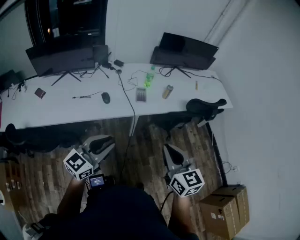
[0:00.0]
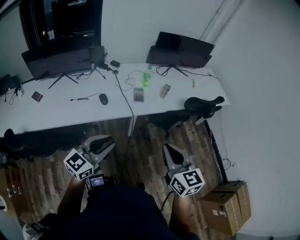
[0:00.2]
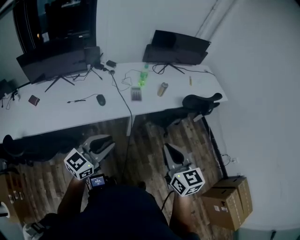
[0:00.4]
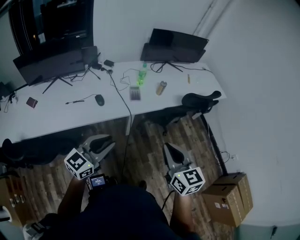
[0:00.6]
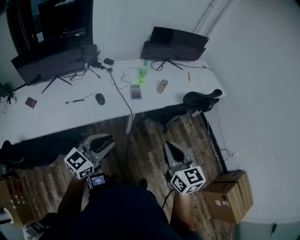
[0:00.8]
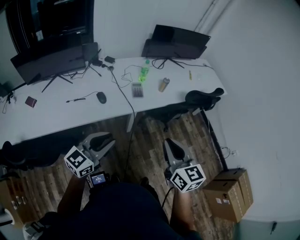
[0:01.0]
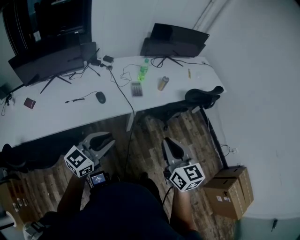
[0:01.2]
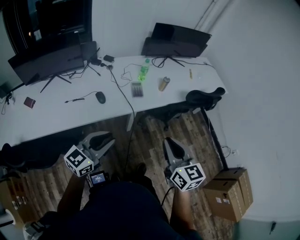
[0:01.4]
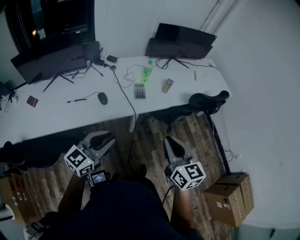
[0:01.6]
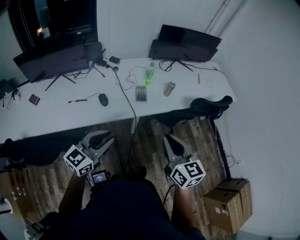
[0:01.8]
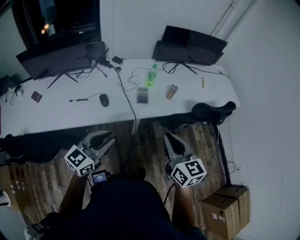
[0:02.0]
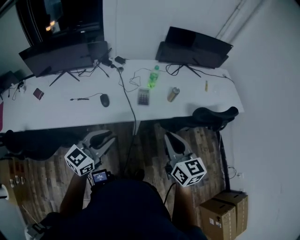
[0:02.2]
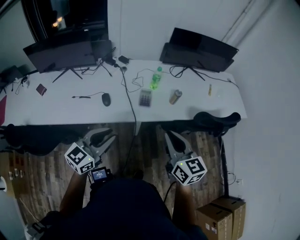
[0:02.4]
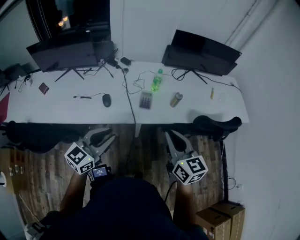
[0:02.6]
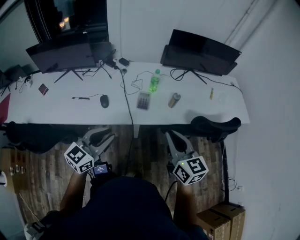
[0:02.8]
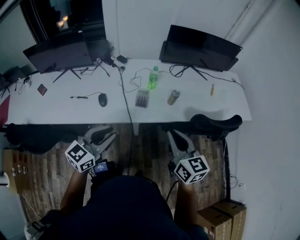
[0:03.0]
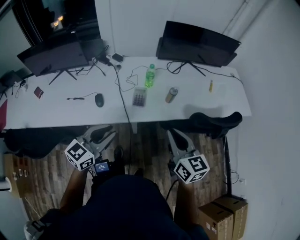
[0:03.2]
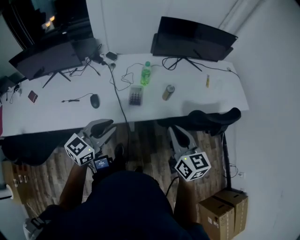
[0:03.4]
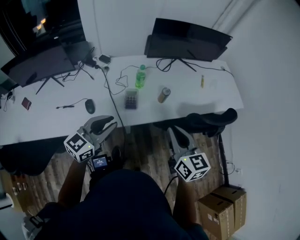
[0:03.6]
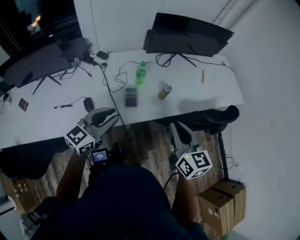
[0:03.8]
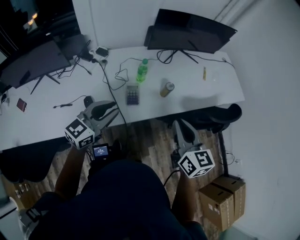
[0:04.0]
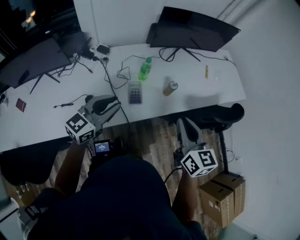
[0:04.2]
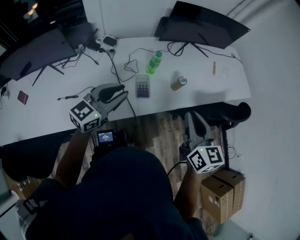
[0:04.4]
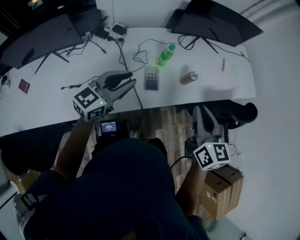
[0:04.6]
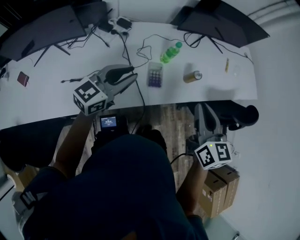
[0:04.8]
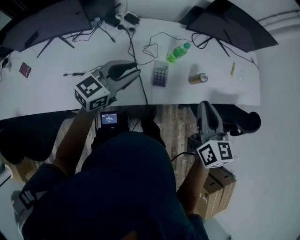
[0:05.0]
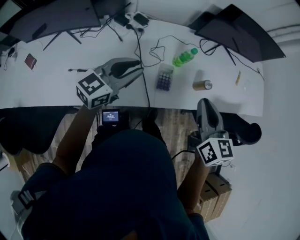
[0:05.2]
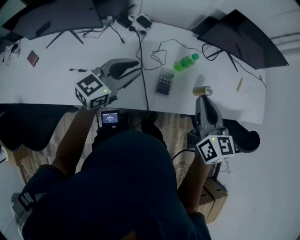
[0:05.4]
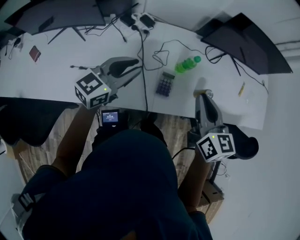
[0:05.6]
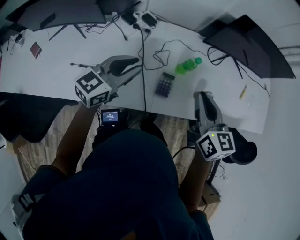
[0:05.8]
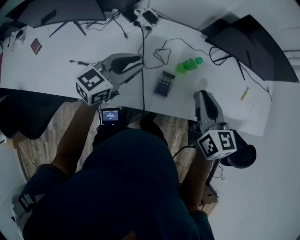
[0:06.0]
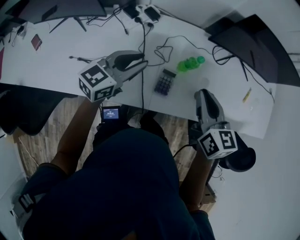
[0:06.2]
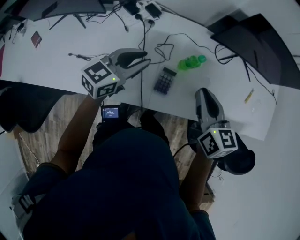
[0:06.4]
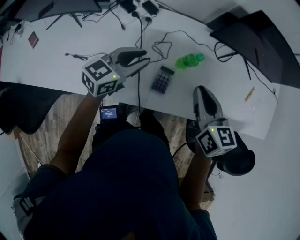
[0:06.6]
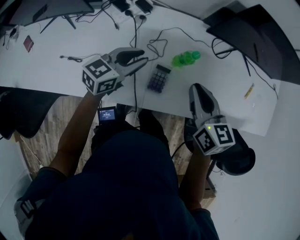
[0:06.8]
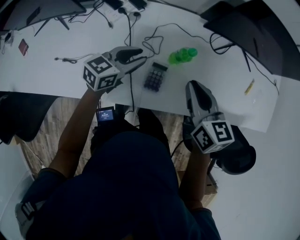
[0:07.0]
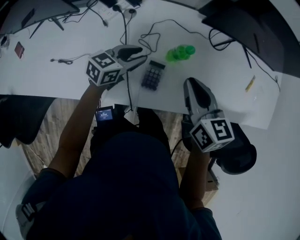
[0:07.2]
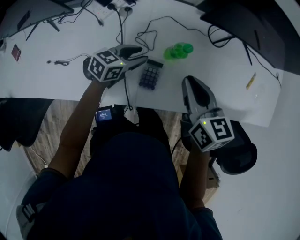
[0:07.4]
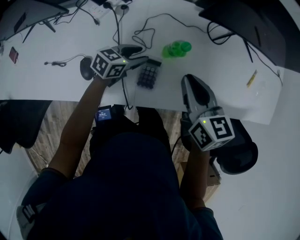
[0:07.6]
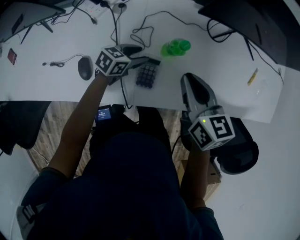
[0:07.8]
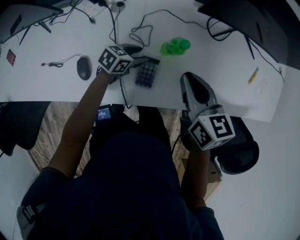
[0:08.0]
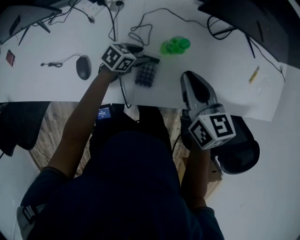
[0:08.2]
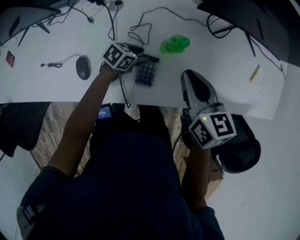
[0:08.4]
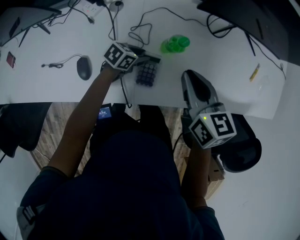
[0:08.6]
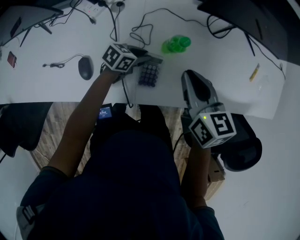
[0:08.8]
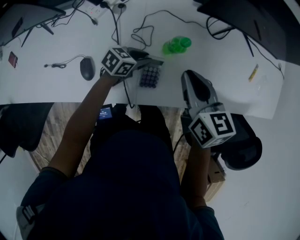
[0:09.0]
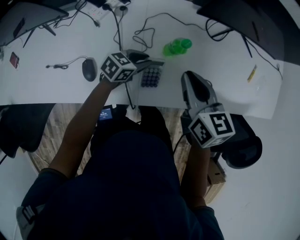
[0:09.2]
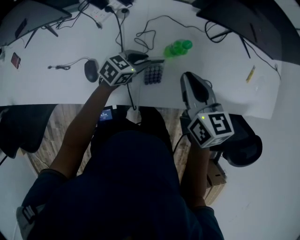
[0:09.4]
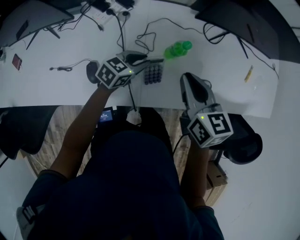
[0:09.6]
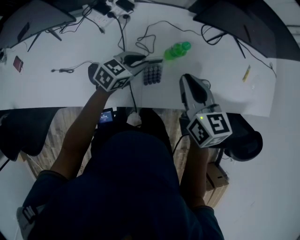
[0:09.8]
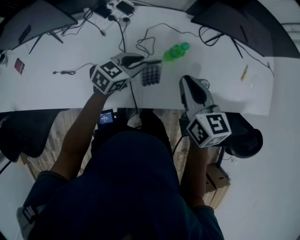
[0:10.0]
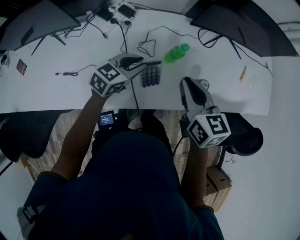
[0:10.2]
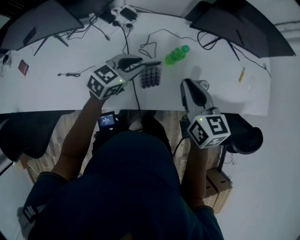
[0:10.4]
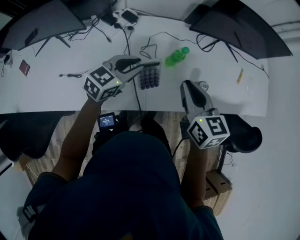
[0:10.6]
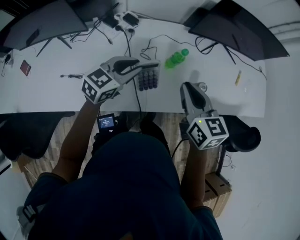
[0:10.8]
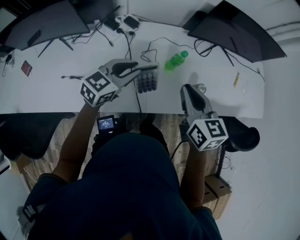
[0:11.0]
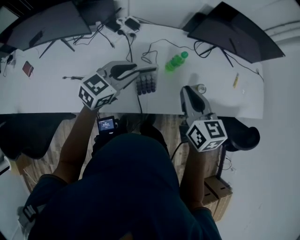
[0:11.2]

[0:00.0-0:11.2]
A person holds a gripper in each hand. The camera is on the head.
0:00.0 to 0:01.6: The grippers both shift forward by roughly 5 cm.
0:01.6 to 0:03.2: The grippers both shift forward and to the right by about 20 cm.
0:03.2 to 0:04.8: The left gripper travels forward and to the left by about 25 cm. The right gripper travels forward and to the left by some 15 cm.
0:04.8 to 0:06.4: The grippers both shift forward and downward by approximately 15 cm. The right gripper swivels about 20 degrees.
0:06.4 to 0:08.0: The left gripper heads downward, covering roughly 25 cm, rotates roughly 30 degrees, and opens its fingers. The right gripper shifts about 10 cm downward and forward.
0:08.0 to 0:09.6: The left gripper heads upward, covering roughly 10 cm, and closes. Meanwhile the right gripper shifts by approximately 5 cm.
0:09.6 to 0:11.2: The right gripper shifts roughly 10 cm backward and upward. The left gripper heads upward and backward, covering approximately 20 cm.

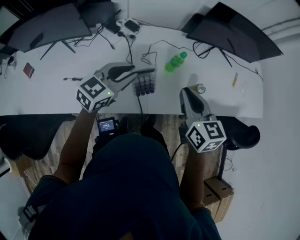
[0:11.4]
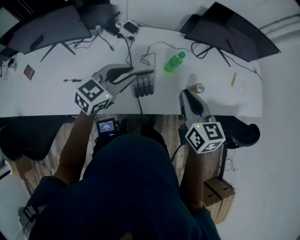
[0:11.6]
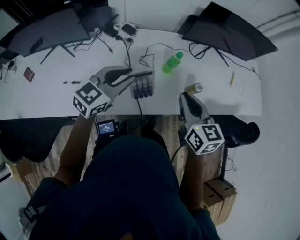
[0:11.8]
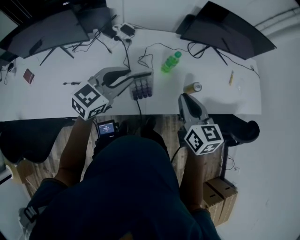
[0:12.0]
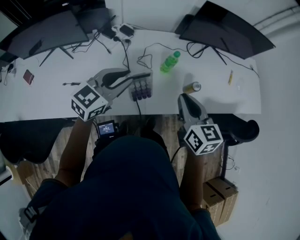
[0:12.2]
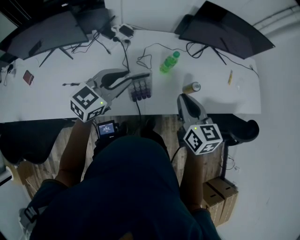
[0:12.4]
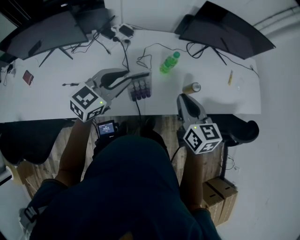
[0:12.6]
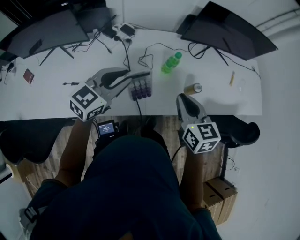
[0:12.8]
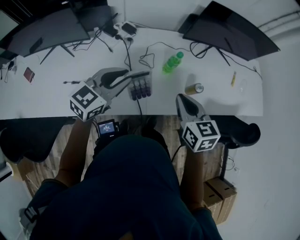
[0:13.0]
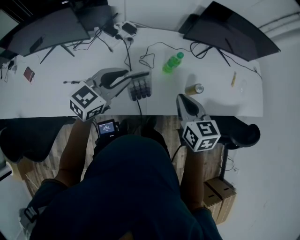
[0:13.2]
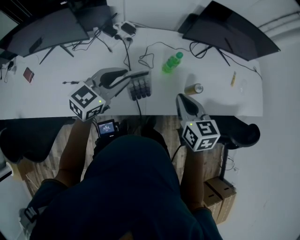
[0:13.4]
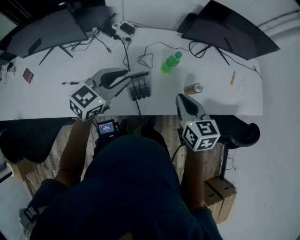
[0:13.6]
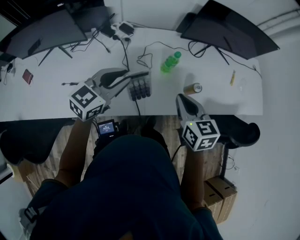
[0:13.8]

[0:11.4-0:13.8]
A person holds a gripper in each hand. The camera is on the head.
0:11.4 to 0:13.8: The grippers make only small movements.

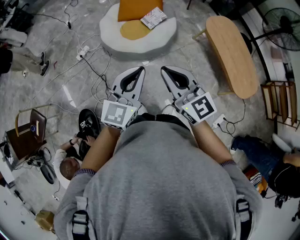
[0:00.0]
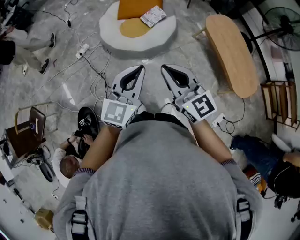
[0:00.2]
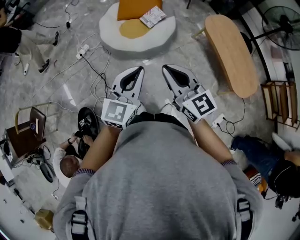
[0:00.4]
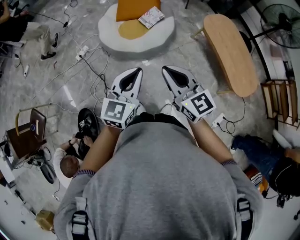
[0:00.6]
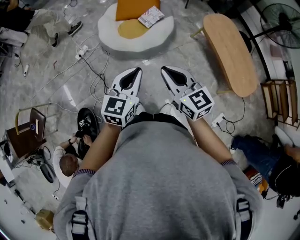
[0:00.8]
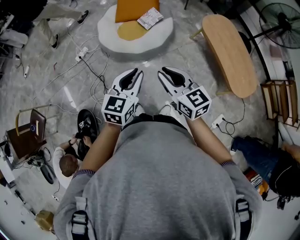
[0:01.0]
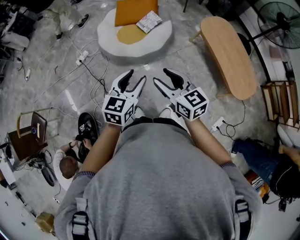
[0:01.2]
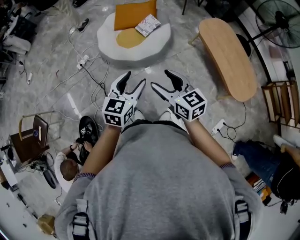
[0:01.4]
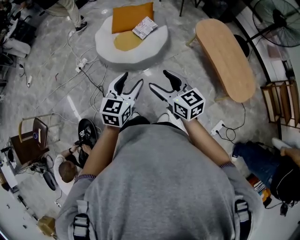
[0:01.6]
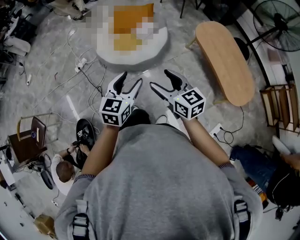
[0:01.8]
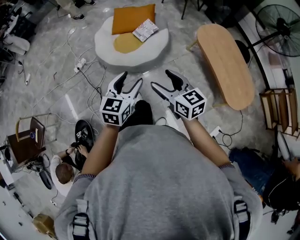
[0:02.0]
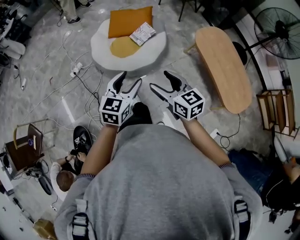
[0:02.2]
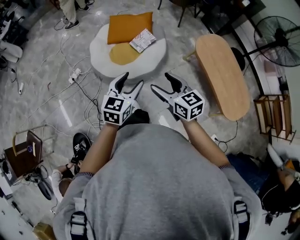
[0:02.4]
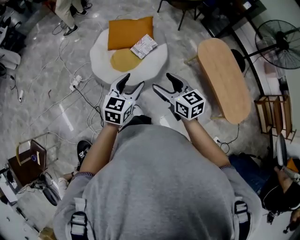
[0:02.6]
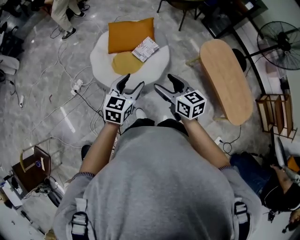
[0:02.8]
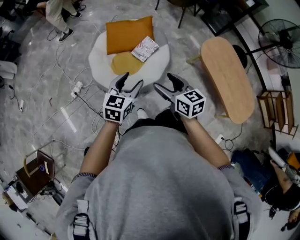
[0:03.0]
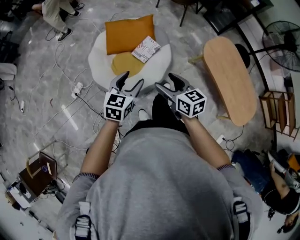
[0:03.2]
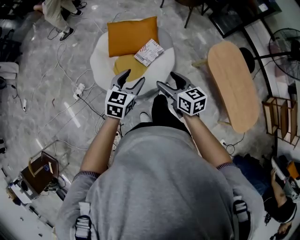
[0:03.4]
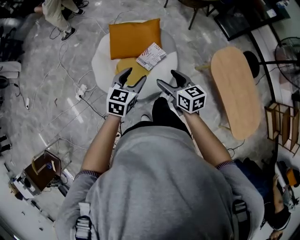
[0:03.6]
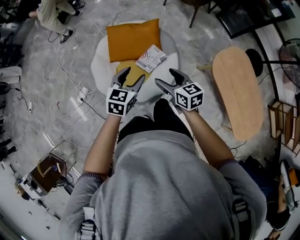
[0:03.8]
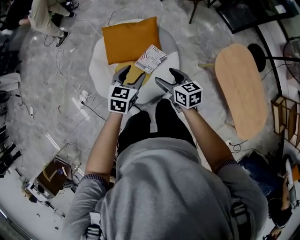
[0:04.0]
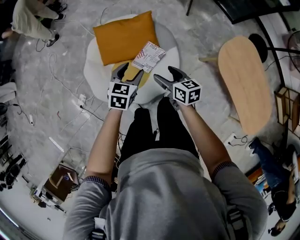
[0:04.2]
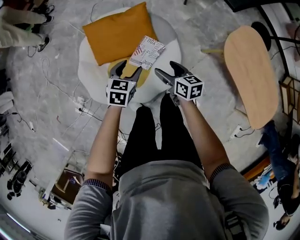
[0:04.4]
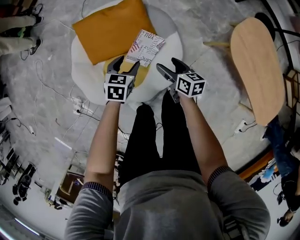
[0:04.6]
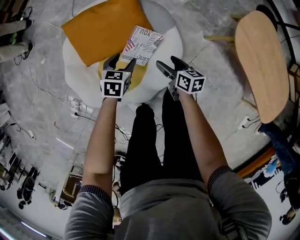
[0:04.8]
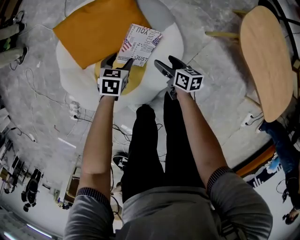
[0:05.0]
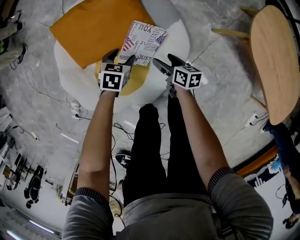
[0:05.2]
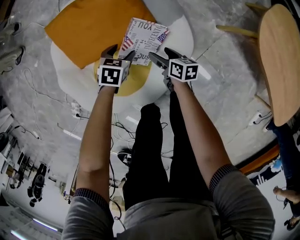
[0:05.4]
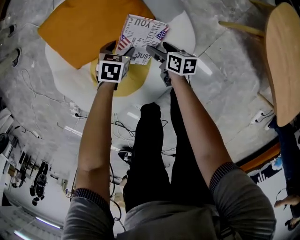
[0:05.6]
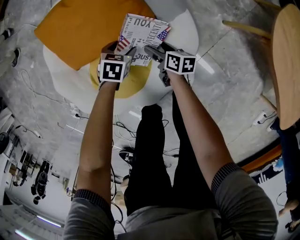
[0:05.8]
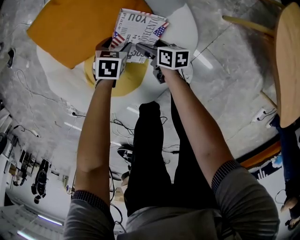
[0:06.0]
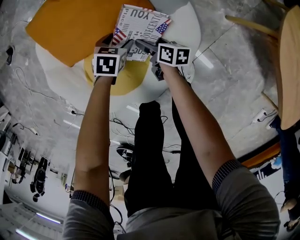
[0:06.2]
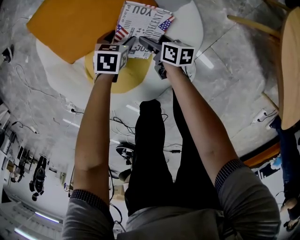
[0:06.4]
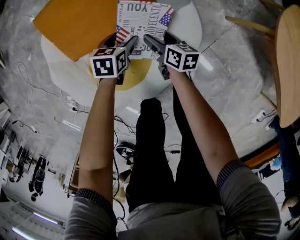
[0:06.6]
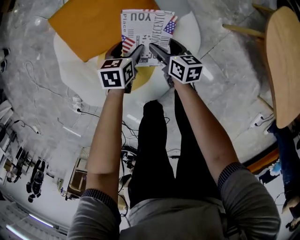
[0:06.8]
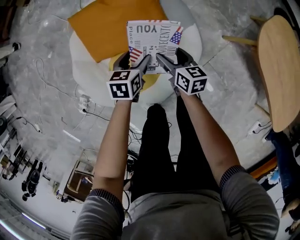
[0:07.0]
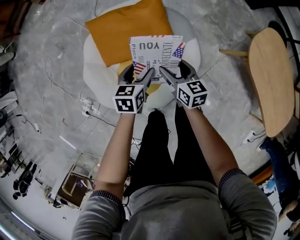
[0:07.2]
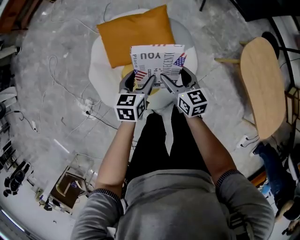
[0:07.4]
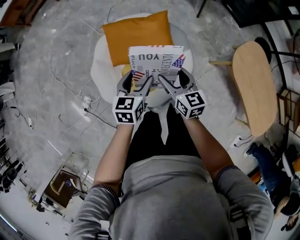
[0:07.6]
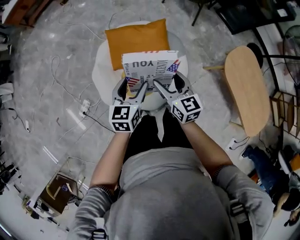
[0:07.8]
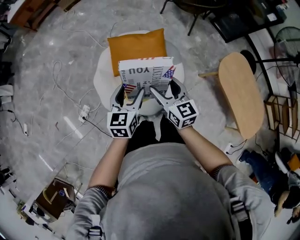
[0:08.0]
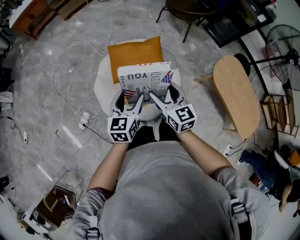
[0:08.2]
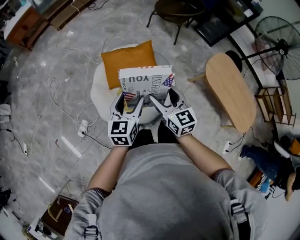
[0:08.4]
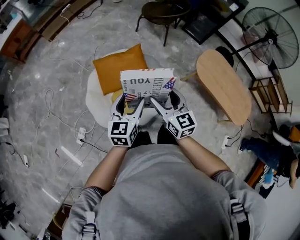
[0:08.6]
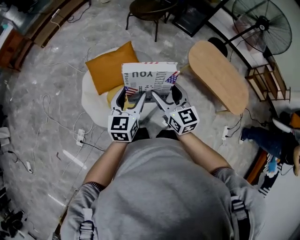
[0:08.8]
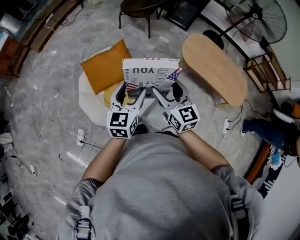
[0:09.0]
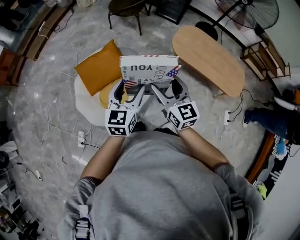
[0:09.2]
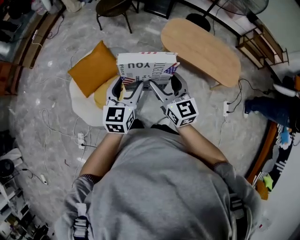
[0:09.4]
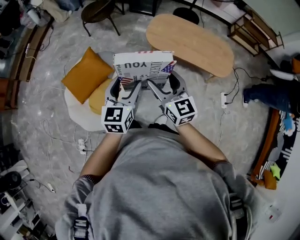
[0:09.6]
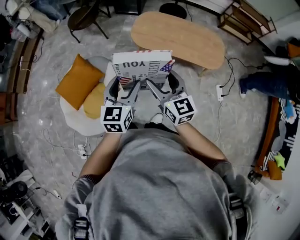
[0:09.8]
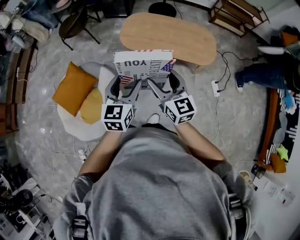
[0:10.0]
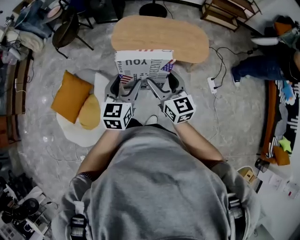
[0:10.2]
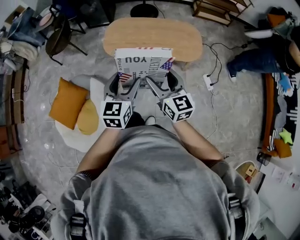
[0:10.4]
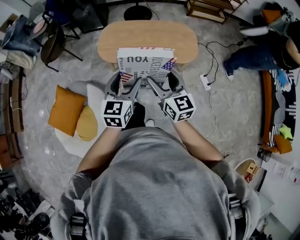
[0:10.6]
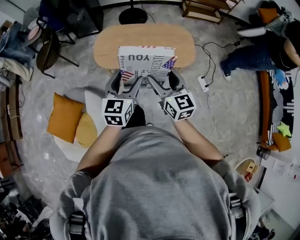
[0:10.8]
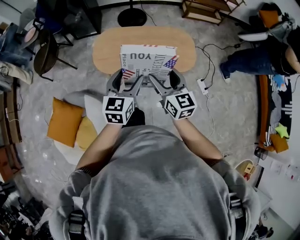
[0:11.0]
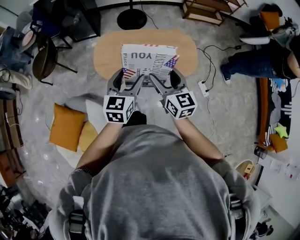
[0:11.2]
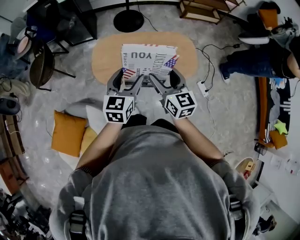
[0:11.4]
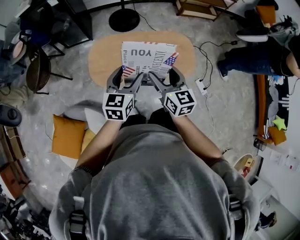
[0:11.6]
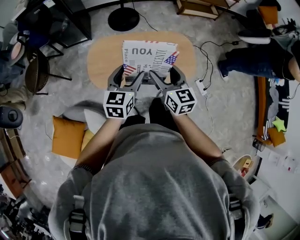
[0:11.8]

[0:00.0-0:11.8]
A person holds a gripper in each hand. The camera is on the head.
0:00.0 to 0:01.4: Both grippers travel together downward and to the right, some 10 cm. The left gripper opens its fingers, while the right gripper opens up.
0:01.4 to 0:03.0: Both grippers travel together forward, some 35 cm.
0:03.0 to 0:04.4: The grippers both shift forward and downward by some 50 cm. The right gripper swivels about 30 degrees. The left gripper rotates about 20 degrees.
0:04.4 to 0:06.0: Both grippers move downward, roughly 40 cm. The right gripper turns by some 30 degrees, while the left gripper turns by approximately 20 degrees.
0:06.0 to 0:07.4: The two grippers go about 40 cm upward. The left gripper turns by roughly 40 degrees. The right gripper twists approximately 40 degrees counterclockwise, seen from behind.
0:07.4 to 0:08.8: Both grippers move upward and backward, some 35 cm. The left gripper turns by approximately 30 degrees. The right gripper turns by about 30 degrees.
0:08.8 to 0:10.4: The two grippers travel together, some 50 cm. The right gripper turns by some 40 degrees. Meanwhile the left gripper swivels approximately 40 degrees.
0:10.4 to 0:11.8: Both grippers travel together forward, about 35 cm.
